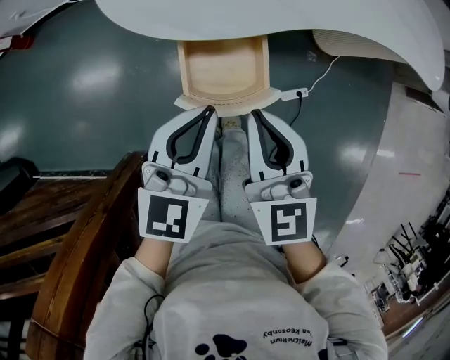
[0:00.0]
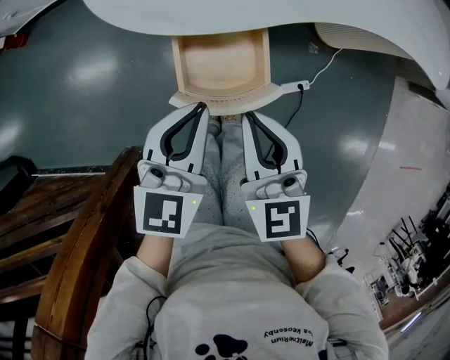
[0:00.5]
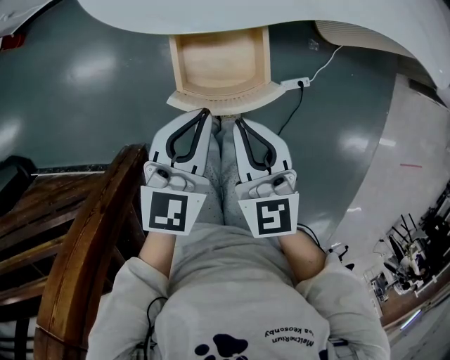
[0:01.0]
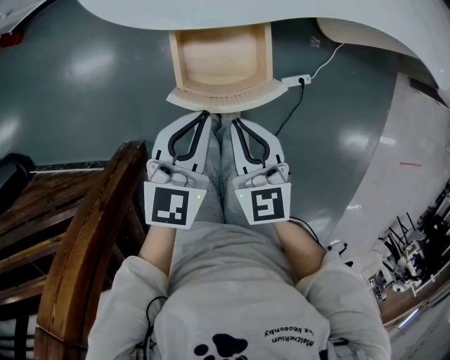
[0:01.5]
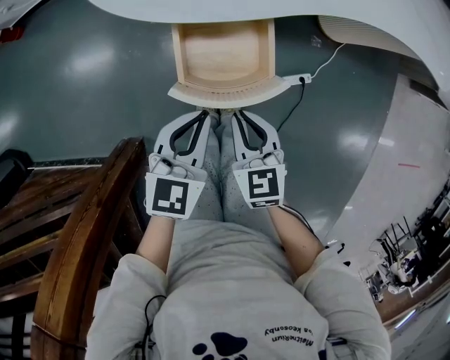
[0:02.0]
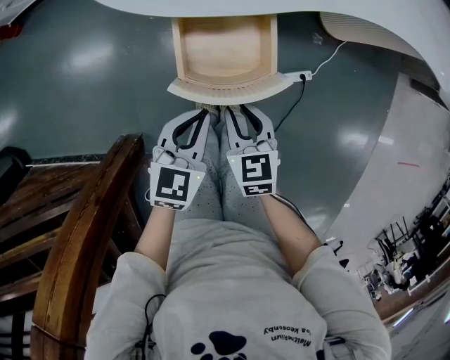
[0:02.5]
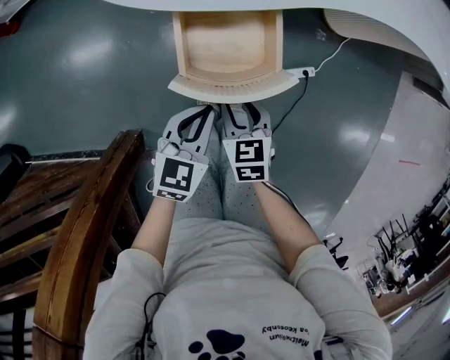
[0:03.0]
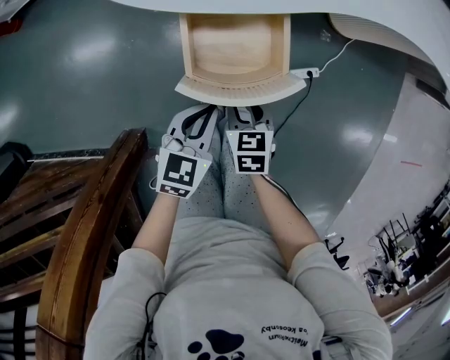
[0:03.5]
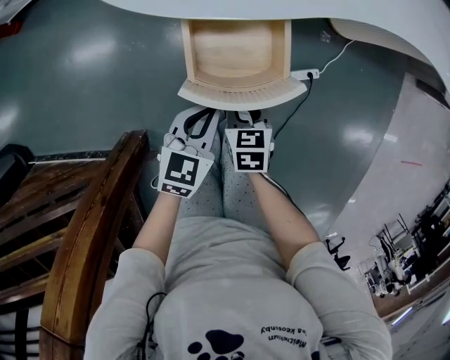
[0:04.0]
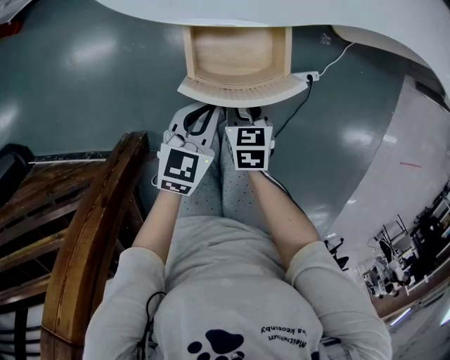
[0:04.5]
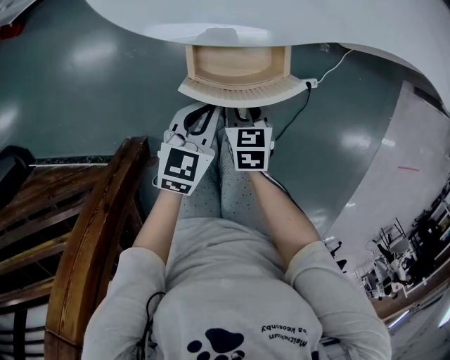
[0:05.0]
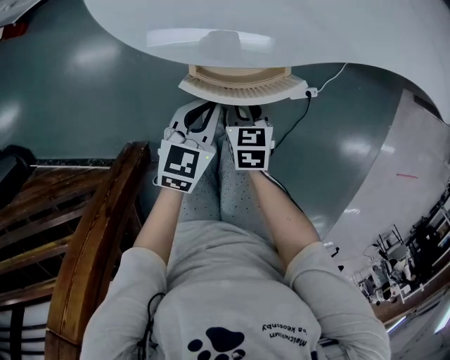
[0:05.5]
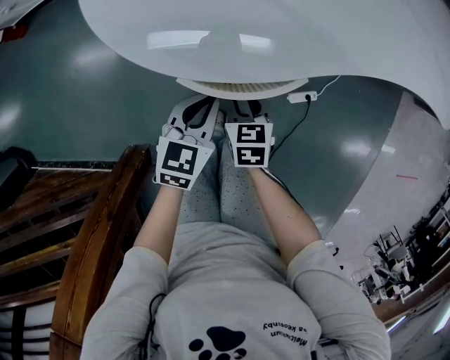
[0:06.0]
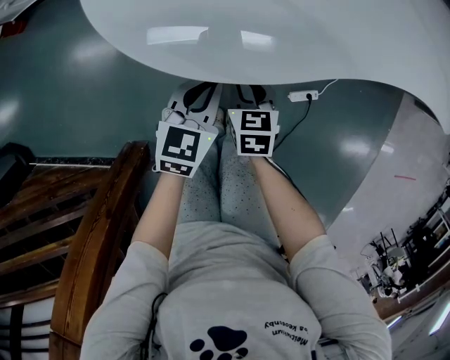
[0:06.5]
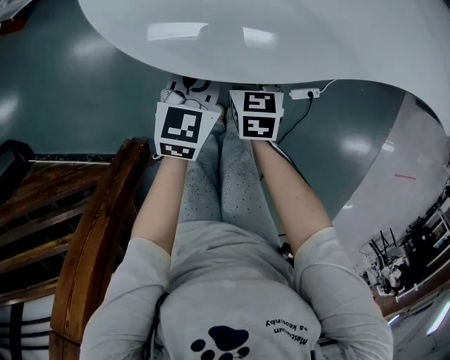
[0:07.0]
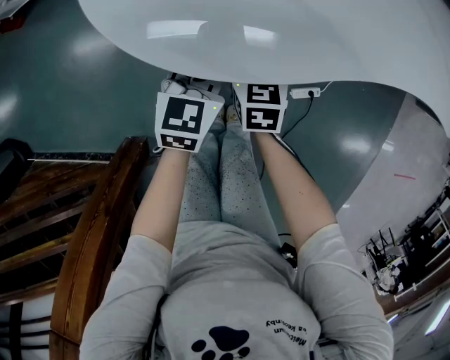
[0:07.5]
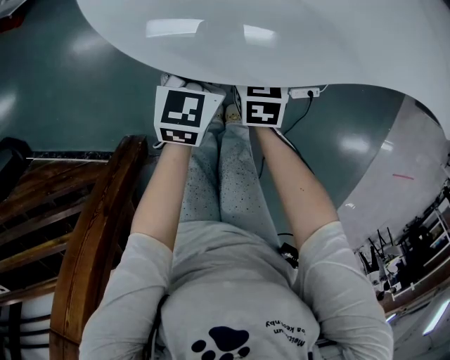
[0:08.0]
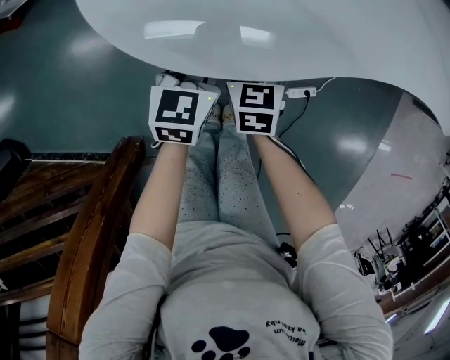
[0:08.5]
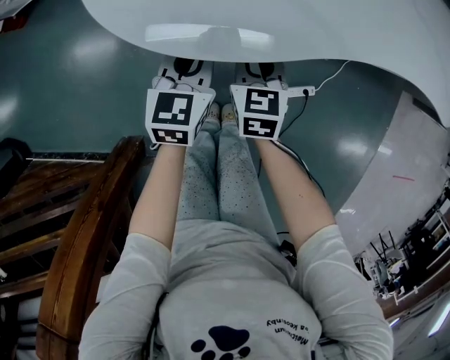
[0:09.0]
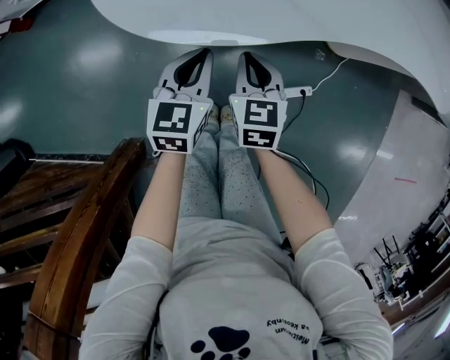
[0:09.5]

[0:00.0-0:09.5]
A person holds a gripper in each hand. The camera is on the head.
0.0 to 2.0 s: The right gripper heads downward, covering approximately 15 cm, and changes its angle by about 20 degrees. Meanwhile the left gripper heads downward, covering some 10 cm.
2.0 to 4.0 s: Both grippers travel together downward, about 10 cm. The right gripper swivels some 20 degrees, and opens its fingers.
4.0 to 5.5 s: Both grippers travel together forward, roughly 10 cm.
5.5 to 7.5 s: The two grippers go about 15 cm forward.
7.5 to 9.5 s: The left gripper is displaced backward by roughly 5 cm; the right gripper shifts approximately 10 cm upward and backward, and closes its fingers.

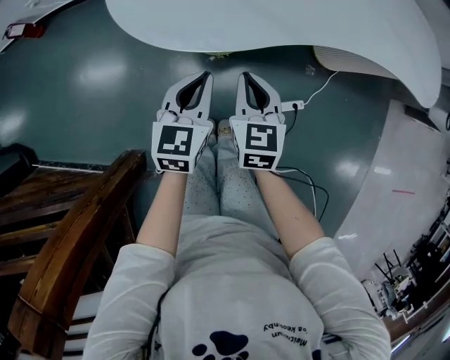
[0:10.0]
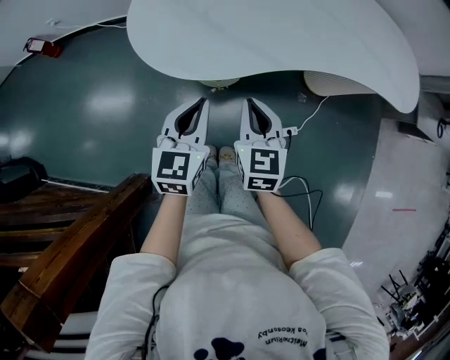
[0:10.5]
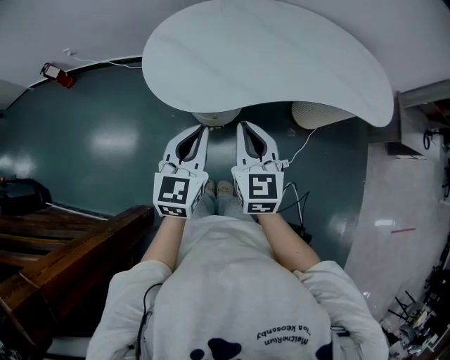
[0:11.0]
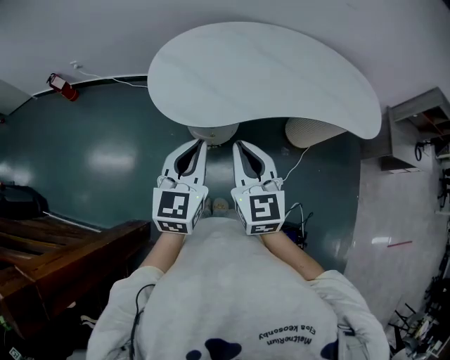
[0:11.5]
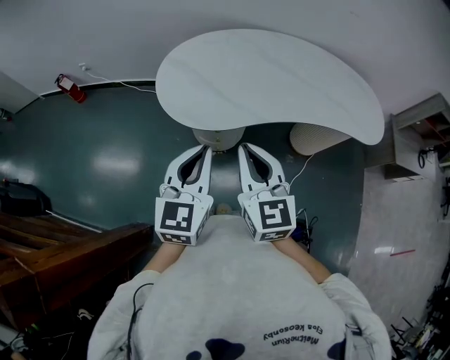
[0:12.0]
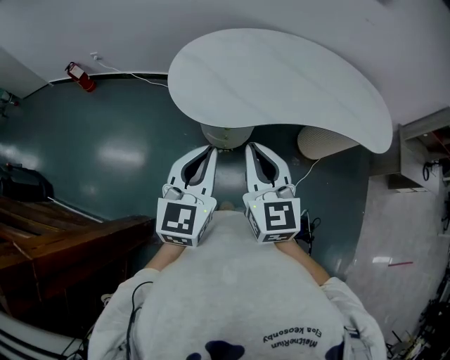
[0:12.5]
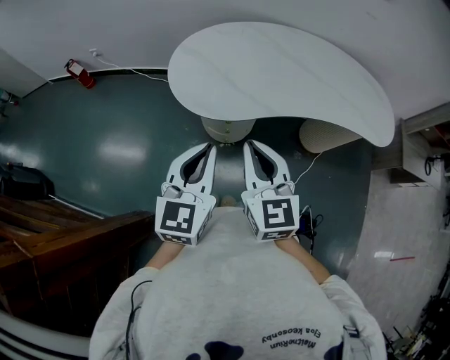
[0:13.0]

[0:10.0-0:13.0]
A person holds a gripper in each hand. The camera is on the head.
10.0 to 11.5 s: Both grippers move upward, roughly 25 cm. The right gripper changes its angle by roughly 20 degrees.
11.5 to 13.0 s: The left gripper shifts by approximately 5 cm.

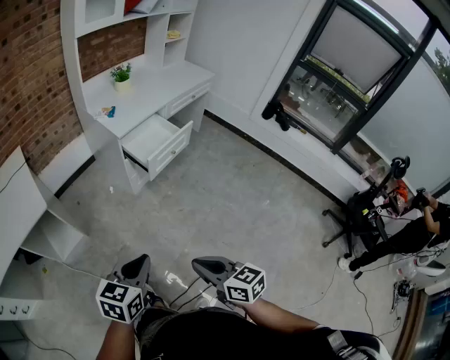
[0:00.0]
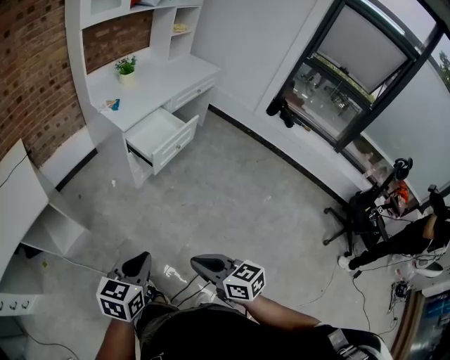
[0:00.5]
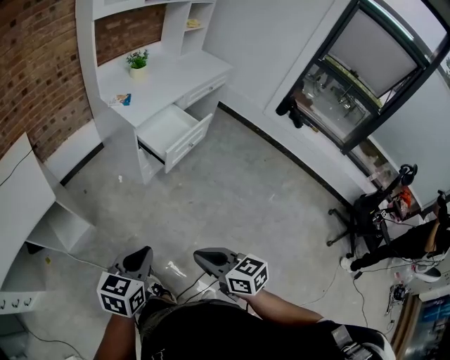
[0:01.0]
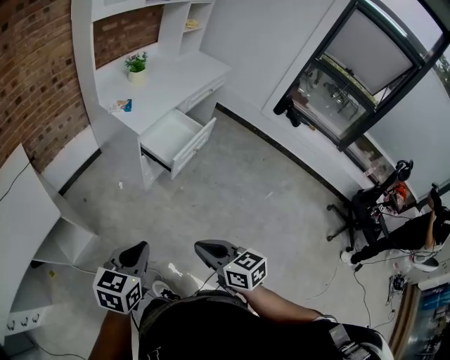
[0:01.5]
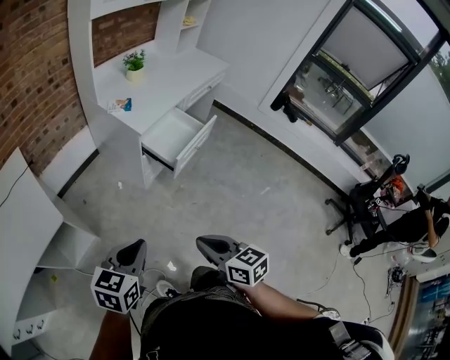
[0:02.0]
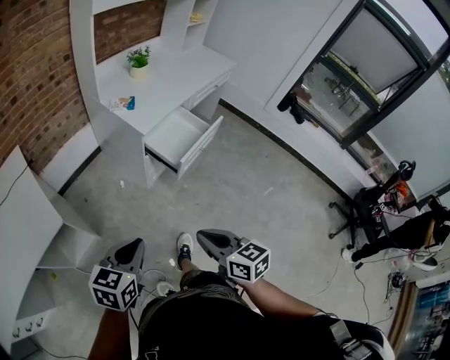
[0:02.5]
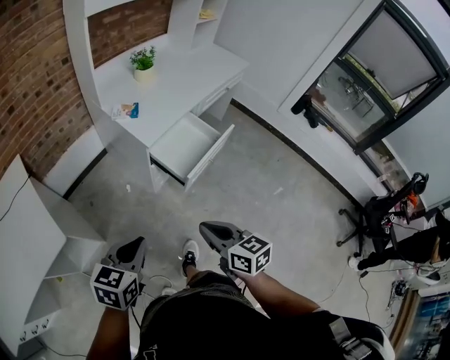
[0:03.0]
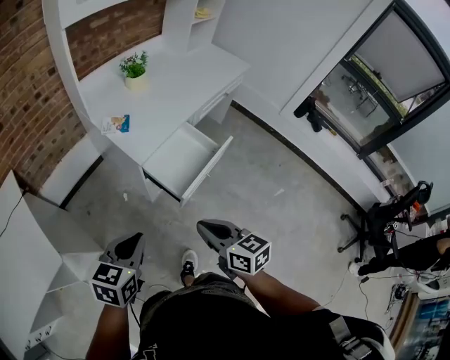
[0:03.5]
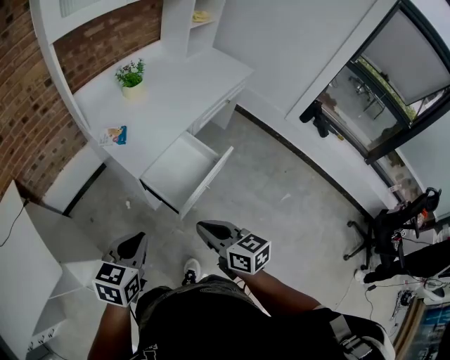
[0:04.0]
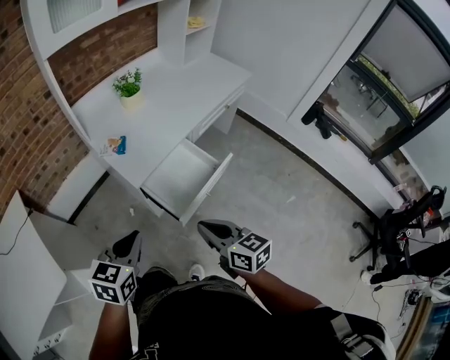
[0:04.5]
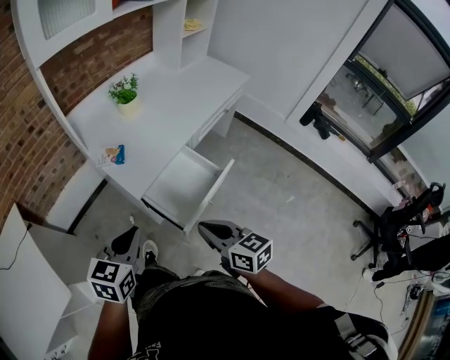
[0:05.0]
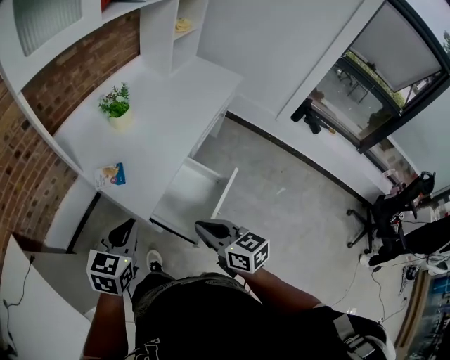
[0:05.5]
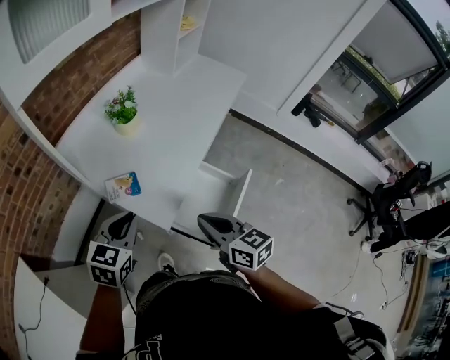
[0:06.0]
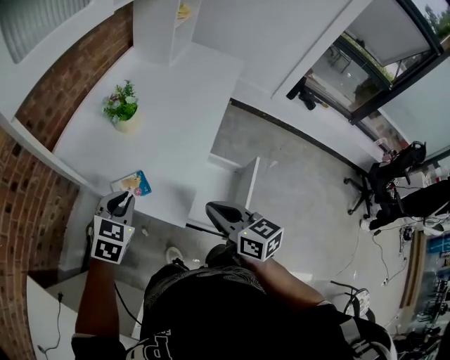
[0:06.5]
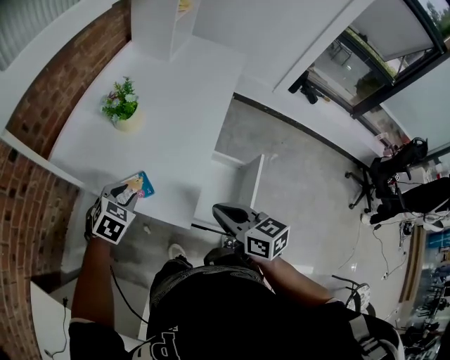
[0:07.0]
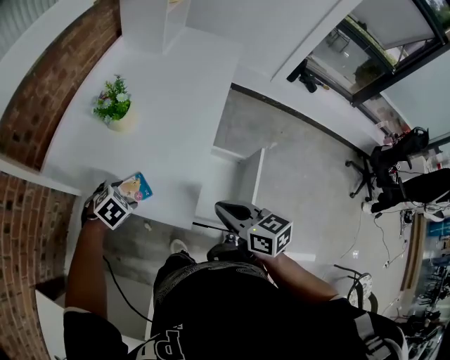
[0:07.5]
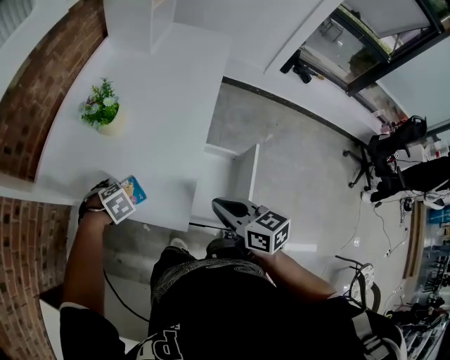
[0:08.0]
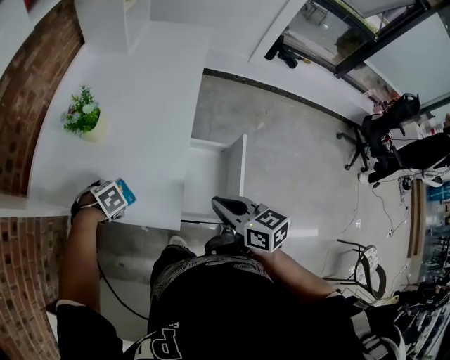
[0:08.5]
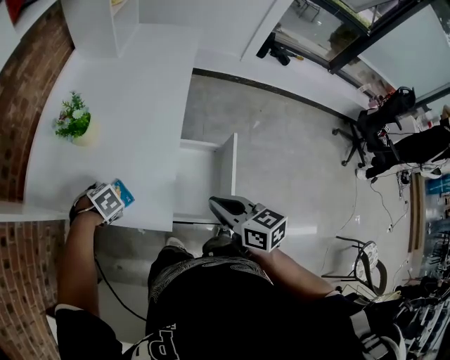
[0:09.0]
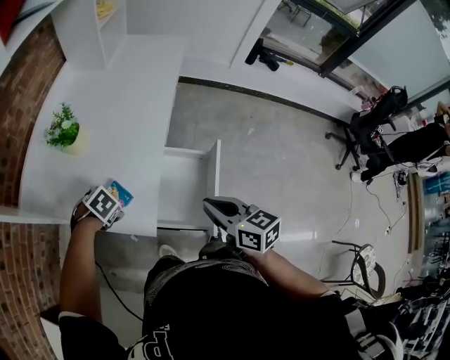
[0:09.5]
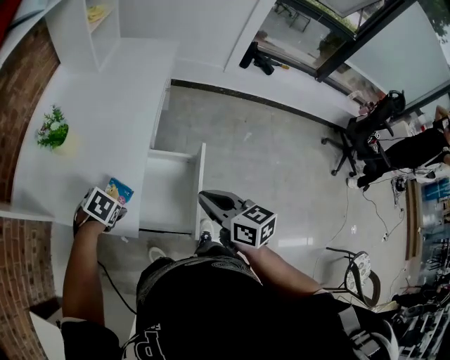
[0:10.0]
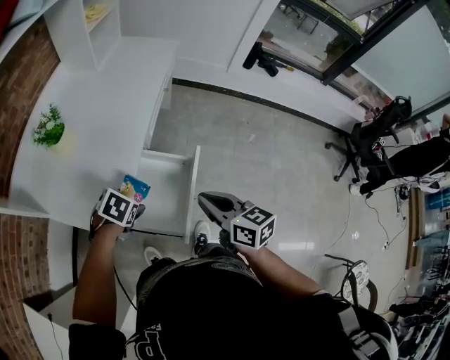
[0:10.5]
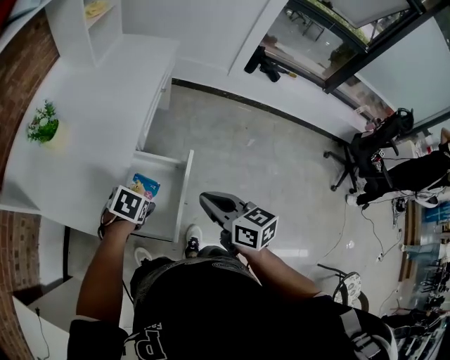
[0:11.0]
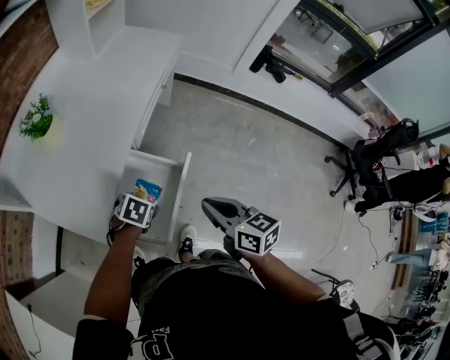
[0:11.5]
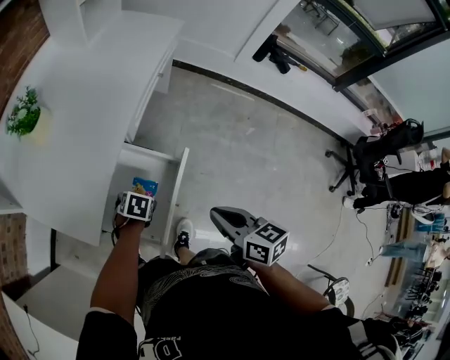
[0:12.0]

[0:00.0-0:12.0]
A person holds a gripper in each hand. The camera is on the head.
0.0 to 2.0 s: The right gripper shifts approximately 20 cm forward and to the left, while the left gripper goes about 20 cm to the left and forward.
2.0 to 4.0 s: The grippers both shift forward by approximately 30 cm.
4.0 to 6.0 s: The right gripper heads forward and to the left, covering approximately 25 cm. The left gripper goes roughly 30 cm forward.
6.0 to 8.0 s: The right gripper moves roughly 10 cm; the left gripper goes roughly 25 cm downward, tips its fingers downward by approximately 50 degrees, and opens its fingers.
8.0 to 10.0 s: The left gripper shifts by some 15 cm, and rotates roughly 20 degrees; the right gripper changes place by some 15 cm.
10.0 to 12.0 s: The left gripper changes place by about 25 cm, and turns by approximately 30 degrees. The right gripper ends up some 15 cm from where it was.

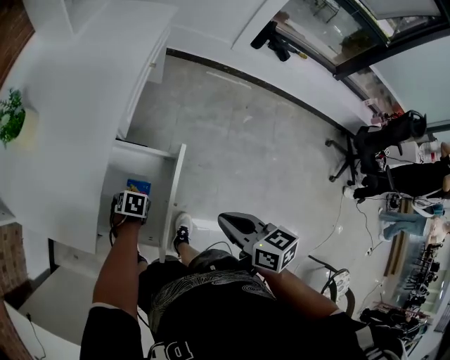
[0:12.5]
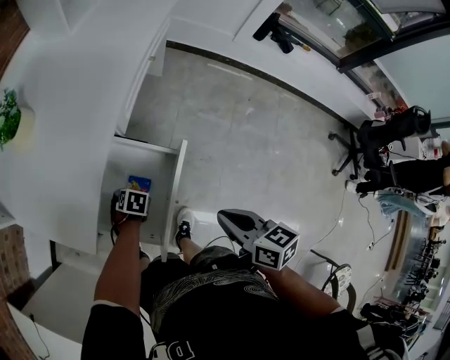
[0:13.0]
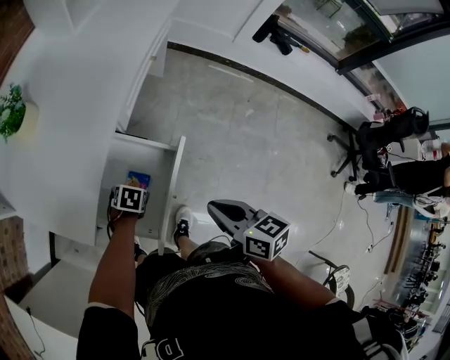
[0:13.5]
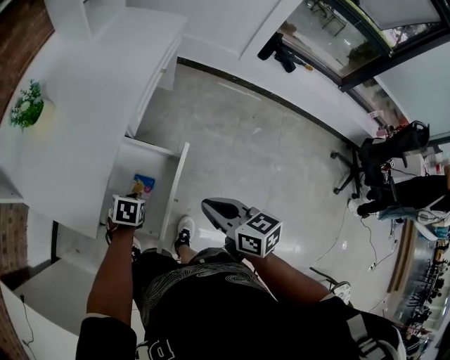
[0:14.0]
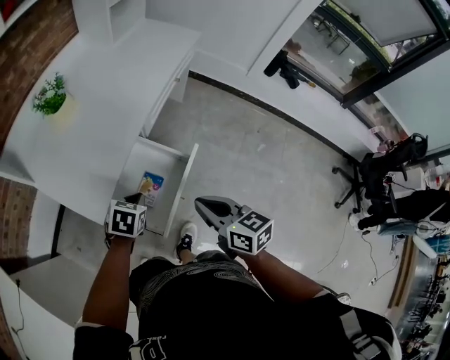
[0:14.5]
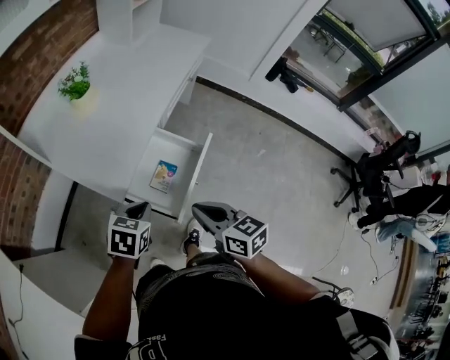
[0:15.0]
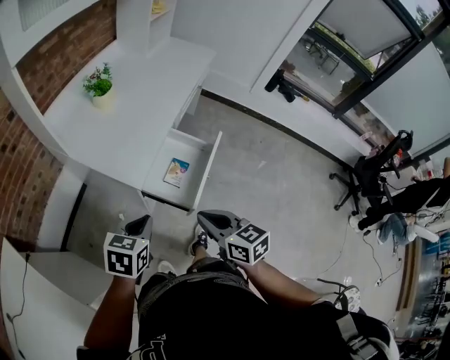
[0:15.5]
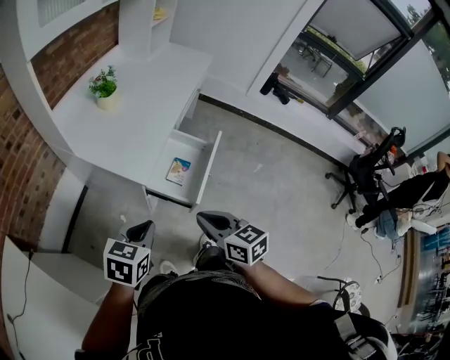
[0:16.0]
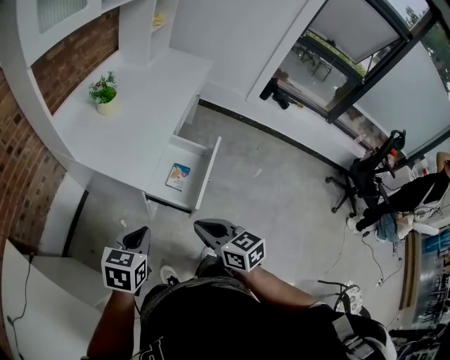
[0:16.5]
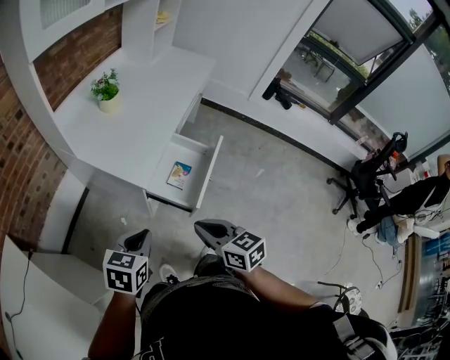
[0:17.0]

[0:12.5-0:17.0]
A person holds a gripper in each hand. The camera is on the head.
12.5 to 14.5 s: The left gripper shifts some 20 cm upward, swivels about 20 degrees, and closes its fingers, while the right gripper moves roughly 10 cm.
14.5 to 17.0 s: The right gripper is displaced backward and to the left by about 30 cm, while the left gripper is displaced backward, to the left and upward by some 35 cm.
